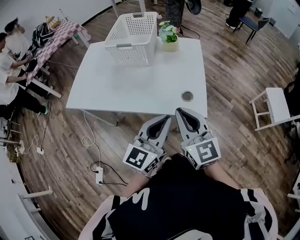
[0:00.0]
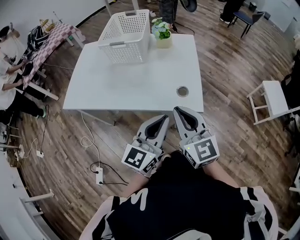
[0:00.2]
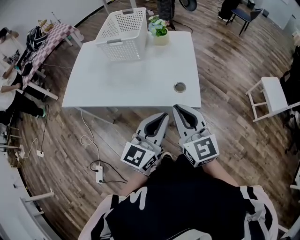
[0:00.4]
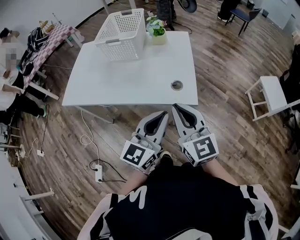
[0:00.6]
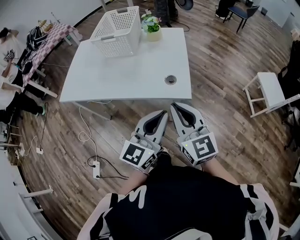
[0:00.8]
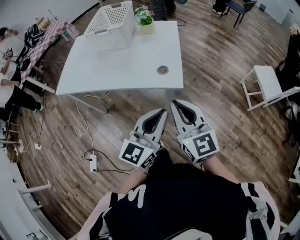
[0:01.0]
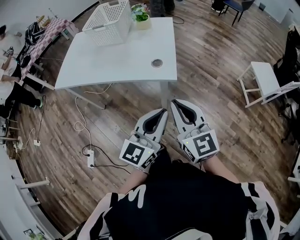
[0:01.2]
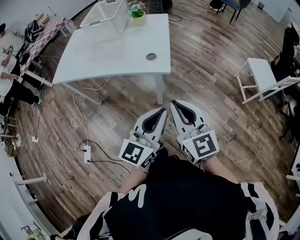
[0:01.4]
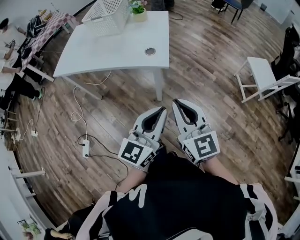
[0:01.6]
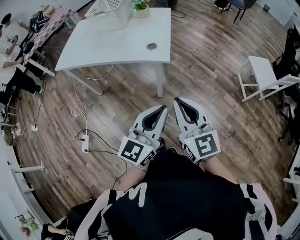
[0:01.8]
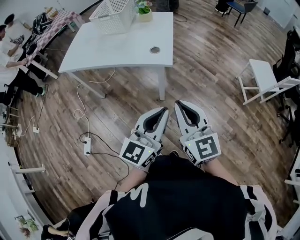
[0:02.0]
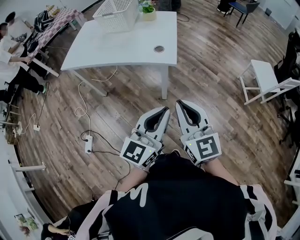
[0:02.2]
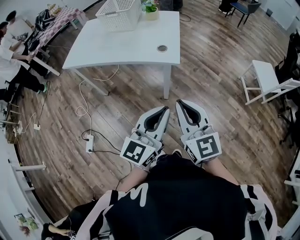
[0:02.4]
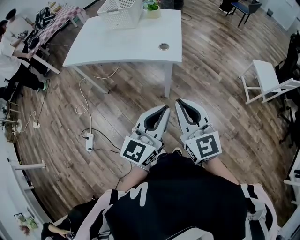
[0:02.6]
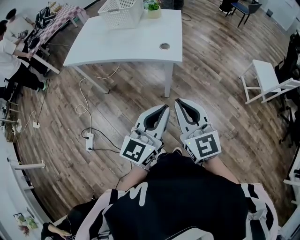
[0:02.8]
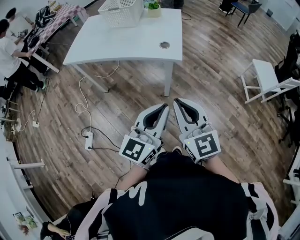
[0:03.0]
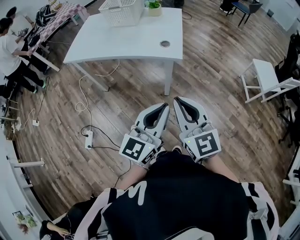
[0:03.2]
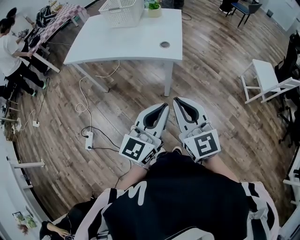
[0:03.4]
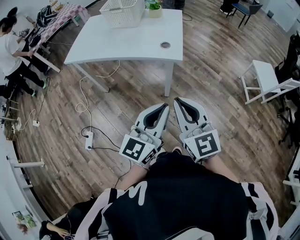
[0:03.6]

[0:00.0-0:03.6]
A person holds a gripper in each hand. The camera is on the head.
0:00.0 to 0:01.8: Both grippers move backward and to the right, roughly 30 cm.
0:01.8 to 0:03.6: The two grippers go about 5 cm to the left.

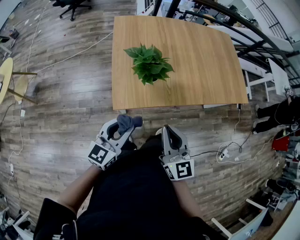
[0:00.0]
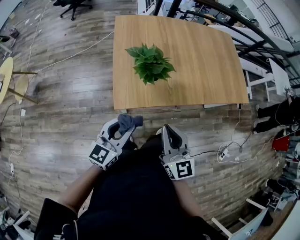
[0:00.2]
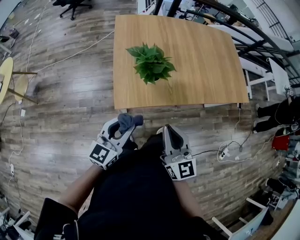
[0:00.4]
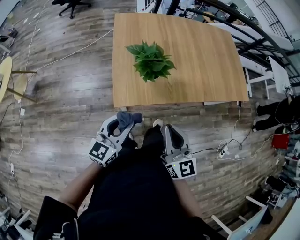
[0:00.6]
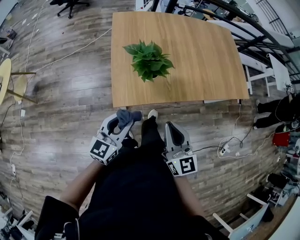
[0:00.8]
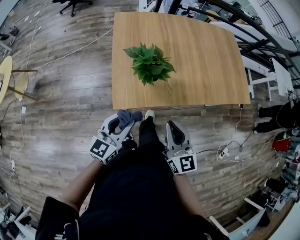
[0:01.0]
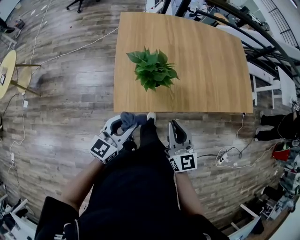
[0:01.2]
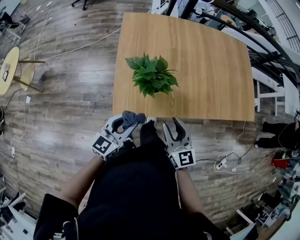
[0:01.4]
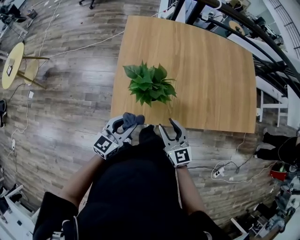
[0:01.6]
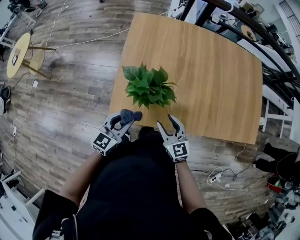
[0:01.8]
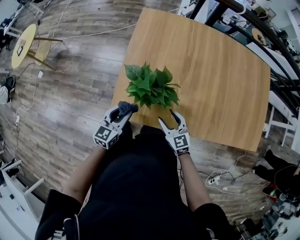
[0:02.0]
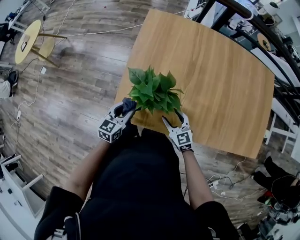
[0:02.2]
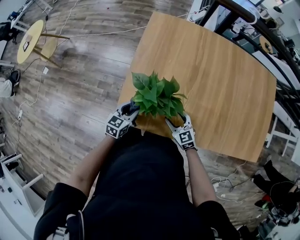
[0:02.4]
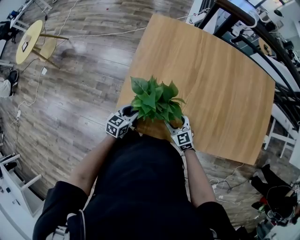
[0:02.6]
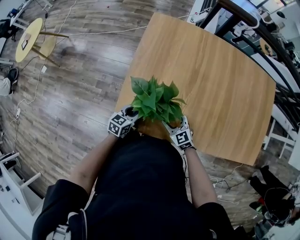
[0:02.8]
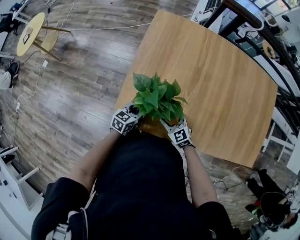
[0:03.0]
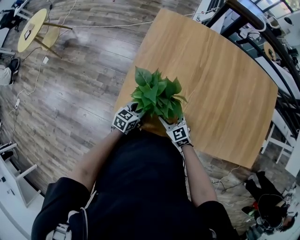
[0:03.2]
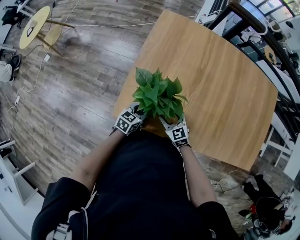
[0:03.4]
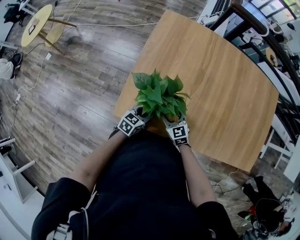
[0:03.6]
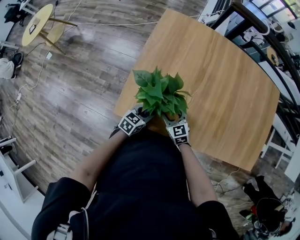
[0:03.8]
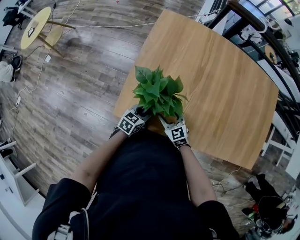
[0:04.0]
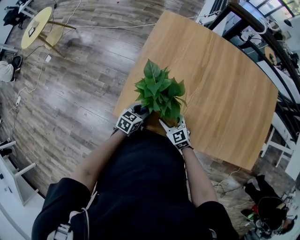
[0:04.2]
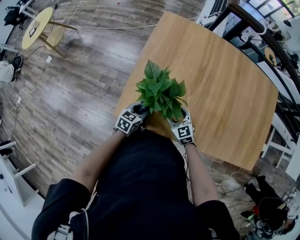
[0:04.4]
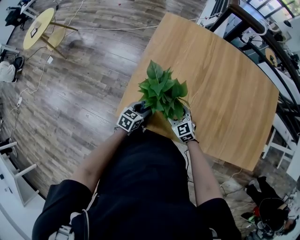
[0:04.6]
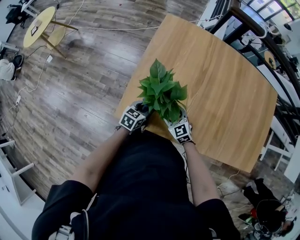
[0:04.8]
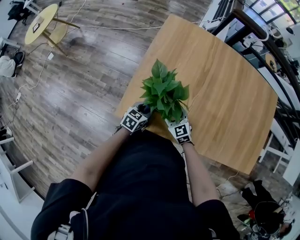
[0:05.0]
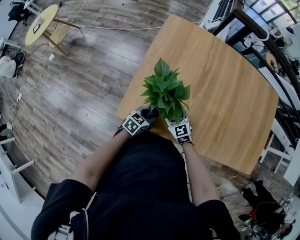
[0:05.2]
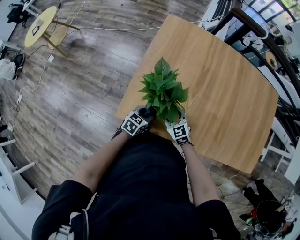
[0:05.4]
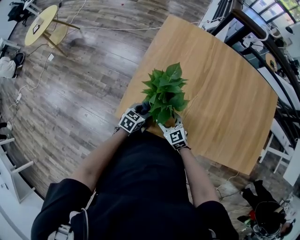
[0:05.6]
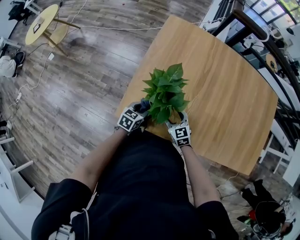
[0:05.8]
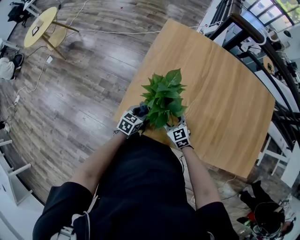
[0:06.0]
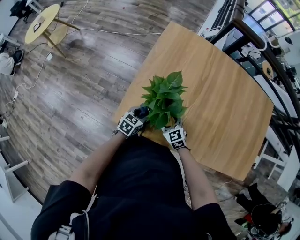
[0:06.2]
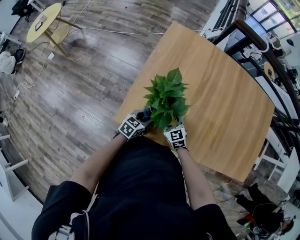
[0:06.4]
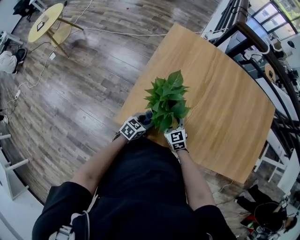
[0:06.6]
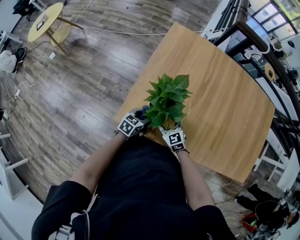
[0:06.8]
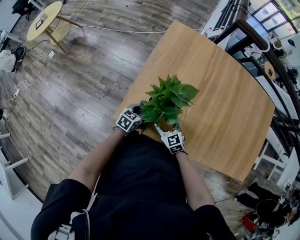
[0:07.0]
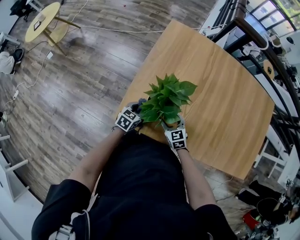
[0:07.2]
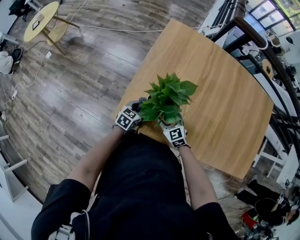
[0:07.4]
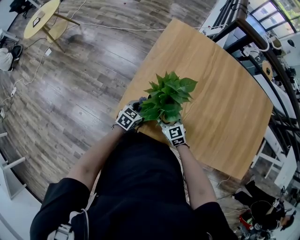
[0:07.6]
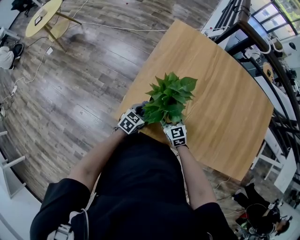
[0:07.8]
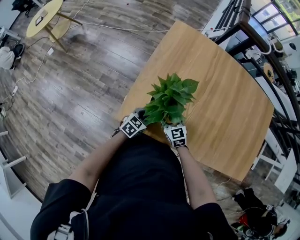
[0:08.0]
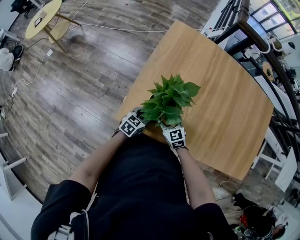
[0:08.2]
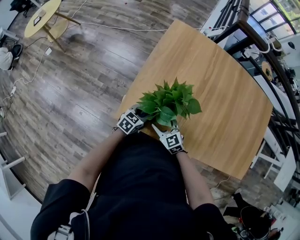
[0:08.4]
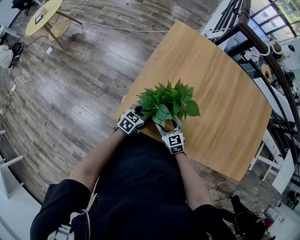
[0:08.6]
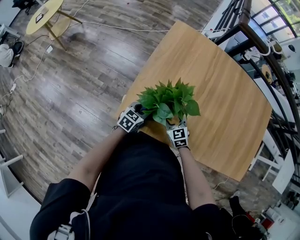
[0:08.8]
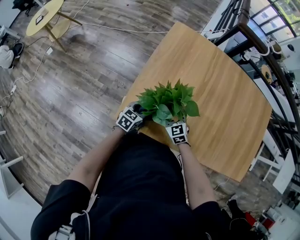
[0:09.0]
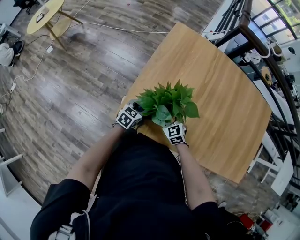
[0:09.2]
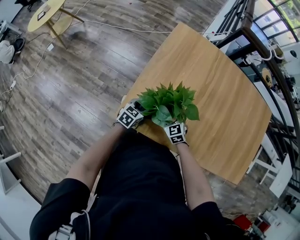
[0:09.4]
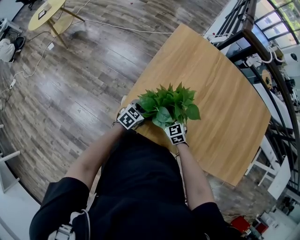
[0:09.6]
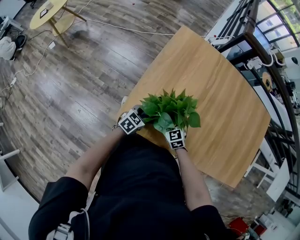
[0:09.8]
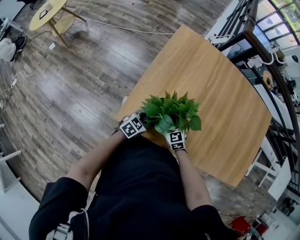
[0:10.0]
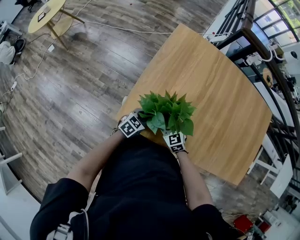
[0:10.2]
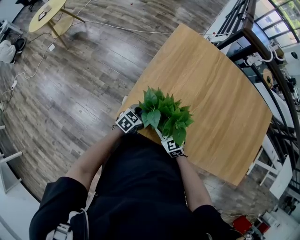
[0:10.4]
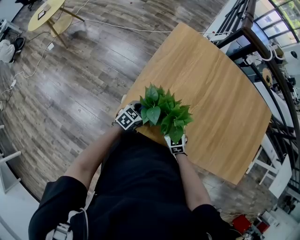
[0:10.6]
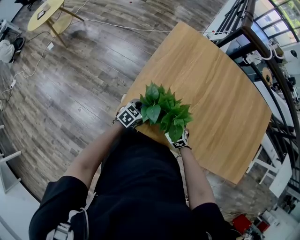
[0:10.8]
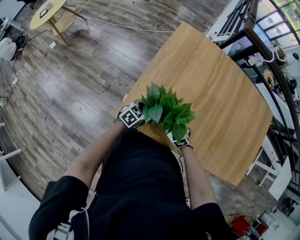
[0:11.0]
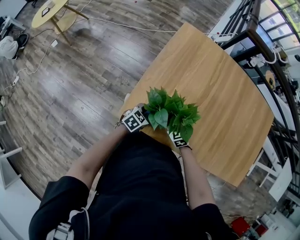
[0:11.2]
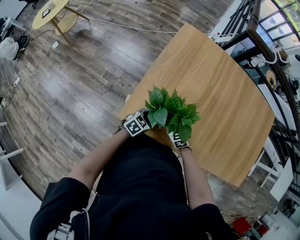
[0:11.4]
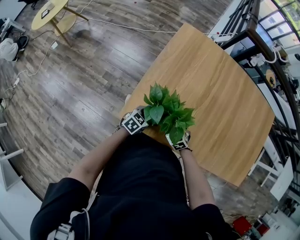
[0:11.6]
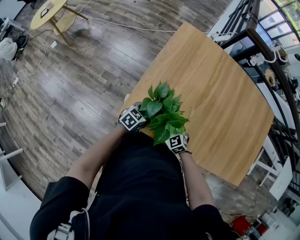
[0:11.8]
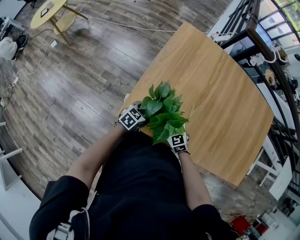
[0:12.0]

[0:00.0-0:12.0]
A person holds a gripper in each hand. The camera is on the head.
0:00.0 to 0:01.6: Both grippers move forward and downward, about 15 cm. The right gripper turns by about 20 degrees, and opens up.
0:01.6 to 0:03.0: The grippers both shift downward and forward by some 20 cm. The left gripper swivels approximately 30 degrees. The right gripper rotates about 30 degrees.
0:03.0 to 0:09.0: The grippers move only a little.
0:09.0 to 0:10.4: The right gripper goes about 5 cm backward.
0:10.4 to 0:12.0: The grippers stay close to where they were, moving slightly.

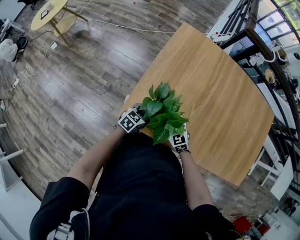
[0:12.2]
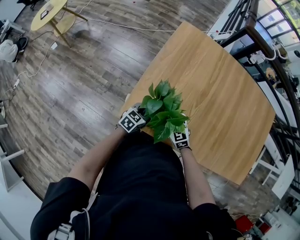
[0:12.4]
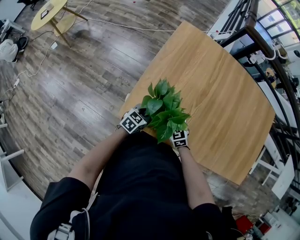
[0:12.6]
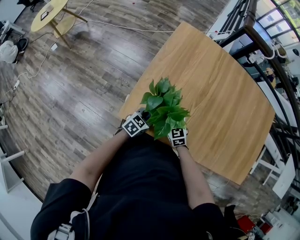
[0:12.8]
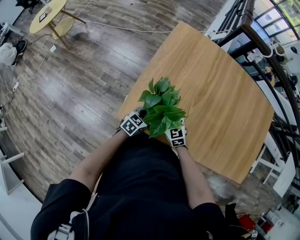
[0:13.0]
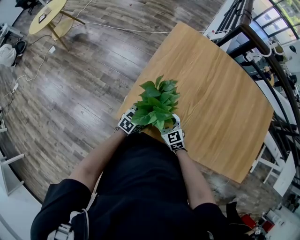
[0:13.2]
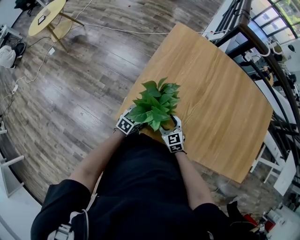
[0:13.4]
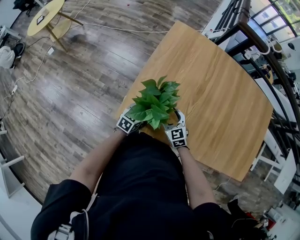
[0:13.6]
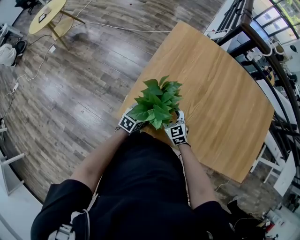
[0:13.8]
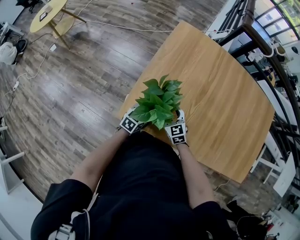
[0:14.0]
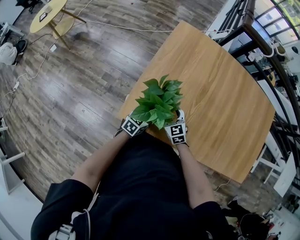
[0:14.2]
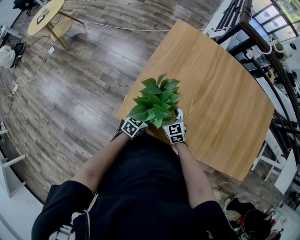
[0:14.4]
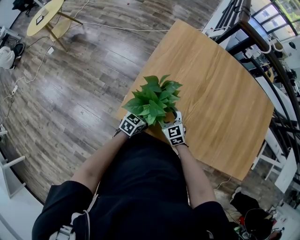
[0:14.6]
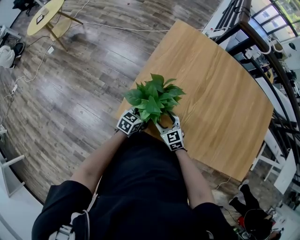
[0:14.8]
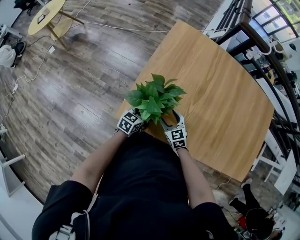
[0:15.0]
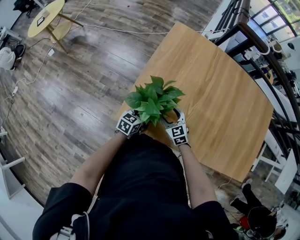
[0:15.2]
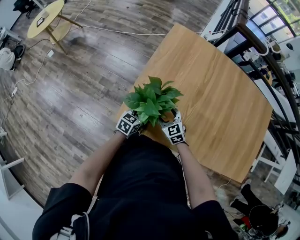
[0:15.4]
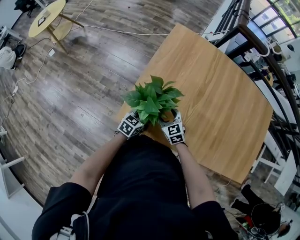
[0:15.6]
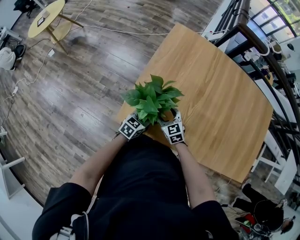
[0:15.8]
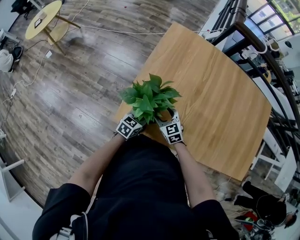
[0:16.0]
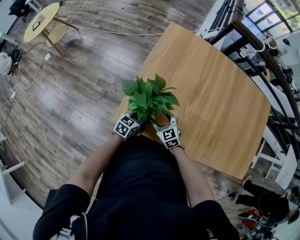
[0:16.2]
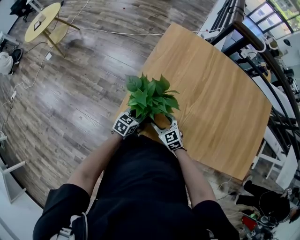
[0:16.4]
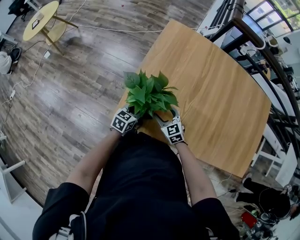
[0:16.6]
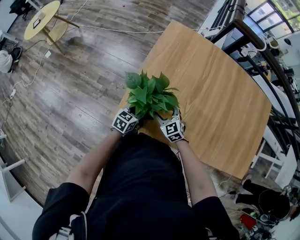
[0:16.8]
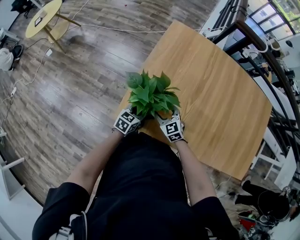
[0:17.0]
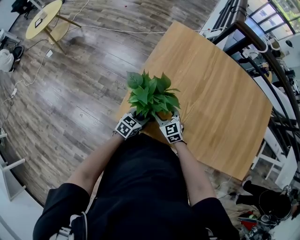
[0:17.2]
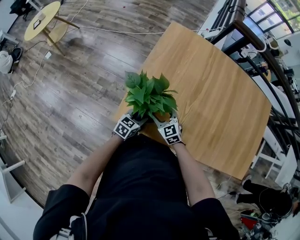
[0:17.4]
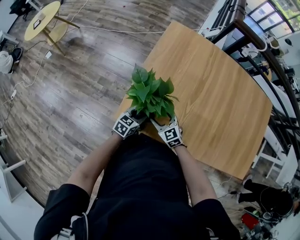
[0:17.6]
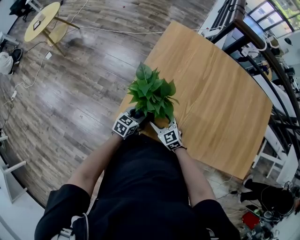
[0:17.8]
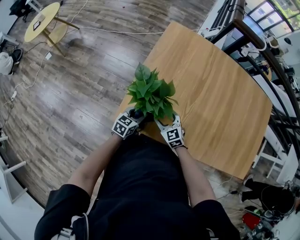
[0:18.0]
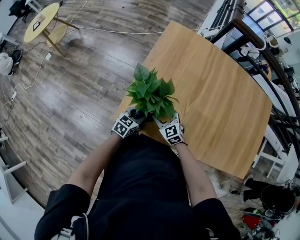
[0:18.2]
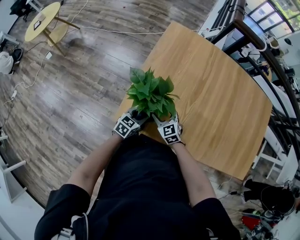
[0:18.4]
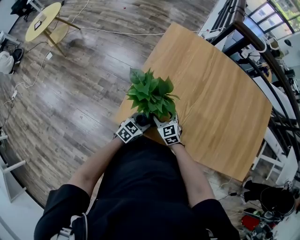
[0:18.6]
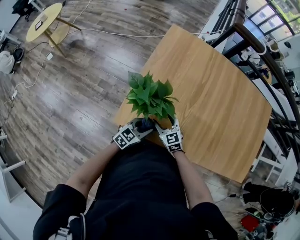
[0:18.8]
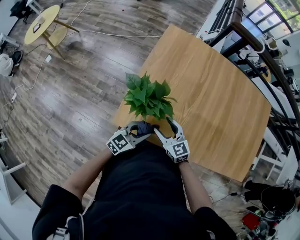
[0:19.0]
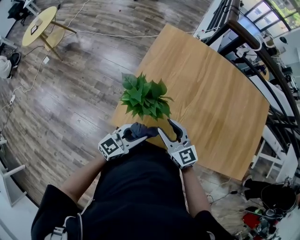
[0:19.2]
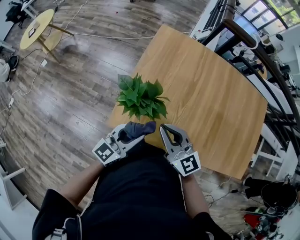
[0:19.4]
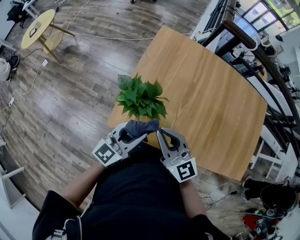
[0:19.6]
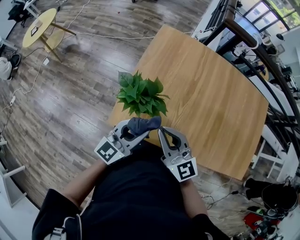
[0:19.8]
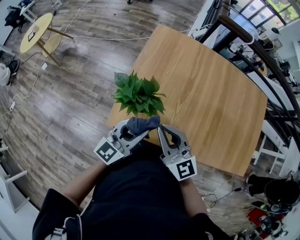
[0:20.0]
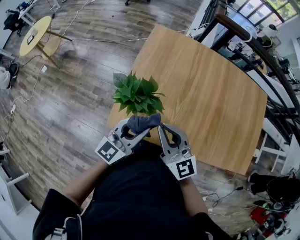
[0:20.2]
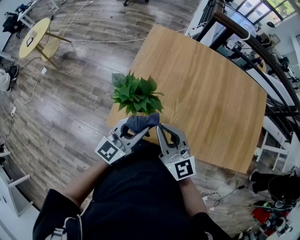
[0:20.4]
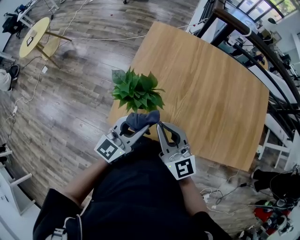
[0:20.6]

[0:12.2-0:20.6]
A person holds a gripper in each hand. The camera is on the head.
0:12.2 to 0:17.8: The grippers move only a little.
0:17.8 to 0:19.2: The grippers both shift upward by about 15 cm. The left gripper changes its angle by roughly 30 degrees. The right gripper turns by about 20 degrees.
0:19.2 to 0:20.6: The two grippers go some 10 cm upward. The right gripper rotates some 20 degrees, and closes up.
